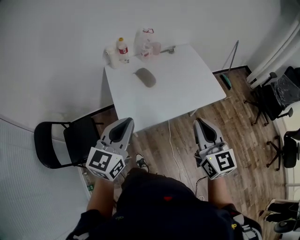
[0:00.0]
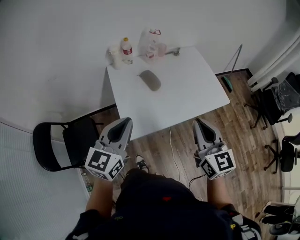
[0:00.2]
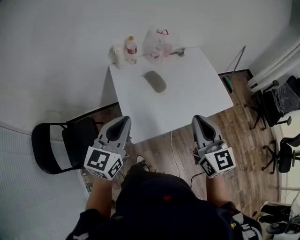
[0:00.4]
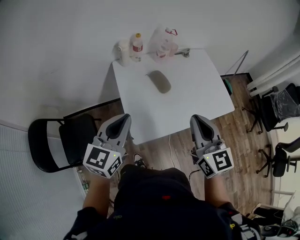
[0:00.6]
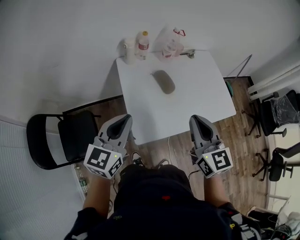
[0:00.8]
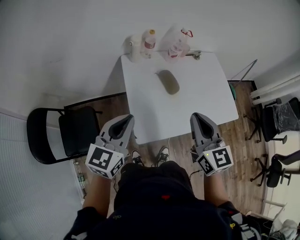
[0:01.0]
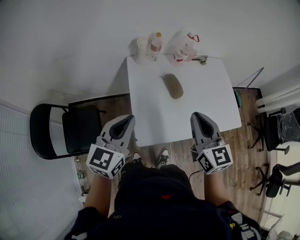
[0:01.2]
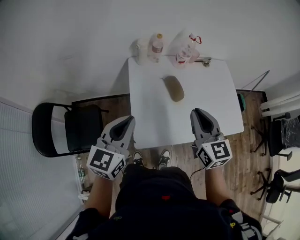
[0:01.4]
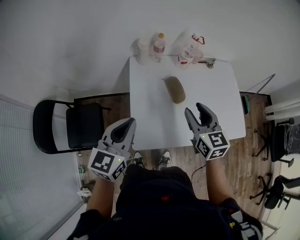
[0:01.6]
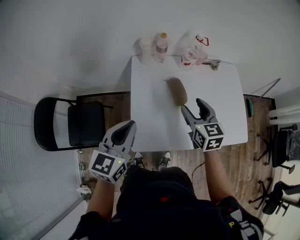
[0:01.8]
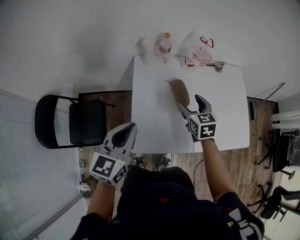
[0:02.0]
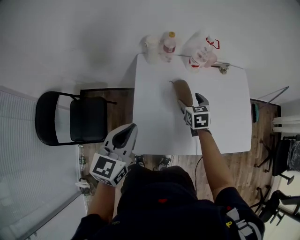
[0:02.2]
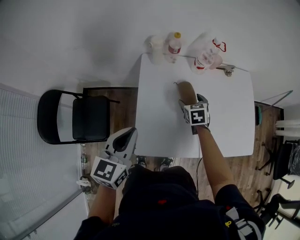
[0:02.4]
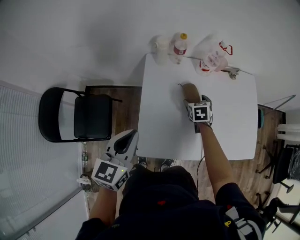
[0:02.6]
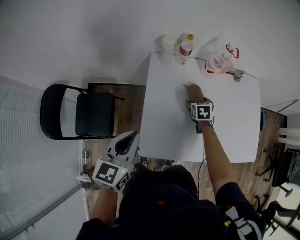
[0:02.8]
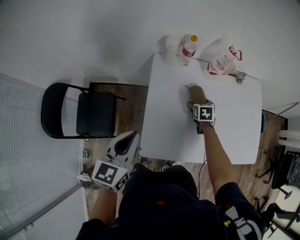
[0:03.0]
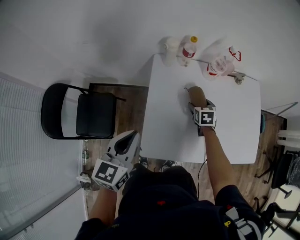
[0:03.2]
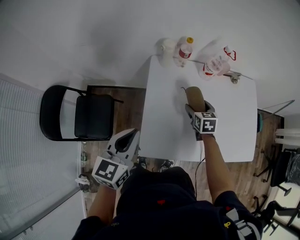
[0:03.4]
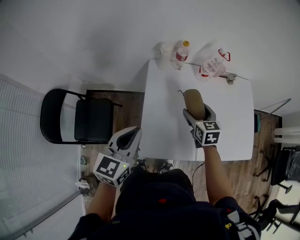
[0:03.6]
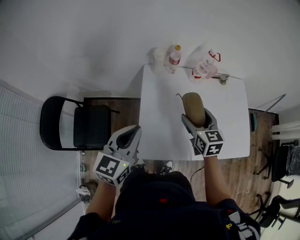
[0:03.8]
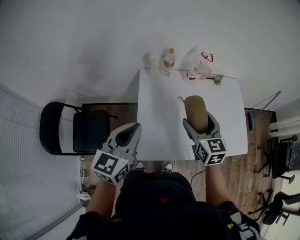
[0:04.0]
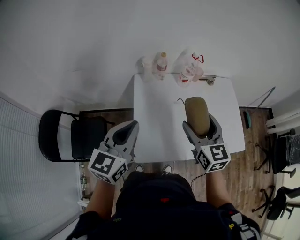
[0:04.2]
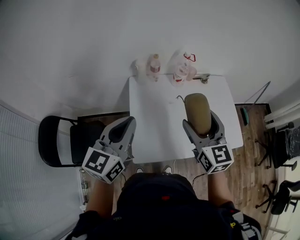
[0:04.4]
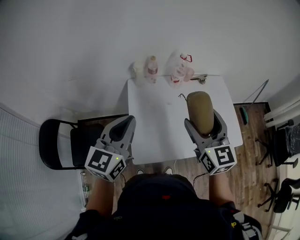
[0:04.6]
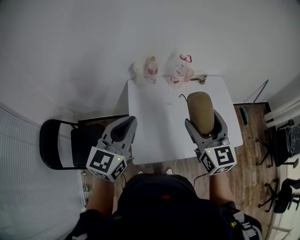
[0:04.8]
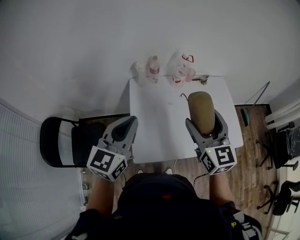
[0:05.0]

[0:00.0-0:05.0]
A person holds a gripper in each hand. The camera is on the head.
0:00.0 to 0:01.6: The right gripper is displaced forward and to the left by roughly 30 cm, rotates roughly 20 degrees, and opens up. Meanwhile the left gripper heads forward and to the left, covering roughly 20 cm.
0:01.6 to 0:03.4: The left gripper shifts by roughly 5 cm; the right gripper moves downward and forward, some 25 cm, swivels roughly 20 degrees, and opens.
0:03.4 to 0:05.0: The right gripper shifts some 35 cm upward and backward, and angles its fingers upward, by roughly 40 degrees, while the left gripper travels upward and to the right by about 15 cm, and changes its angle by roughly 20 degrees.

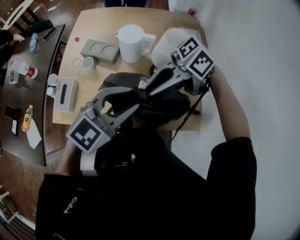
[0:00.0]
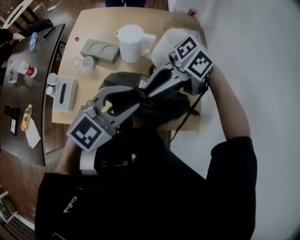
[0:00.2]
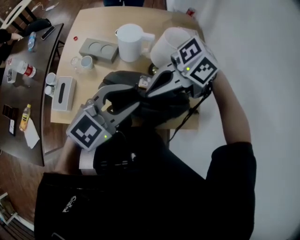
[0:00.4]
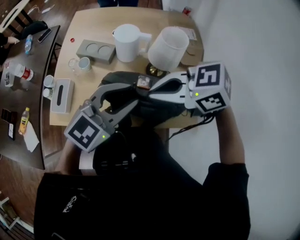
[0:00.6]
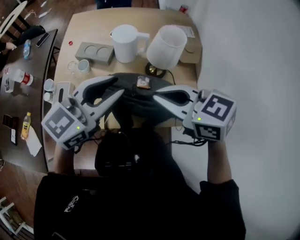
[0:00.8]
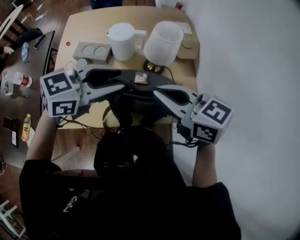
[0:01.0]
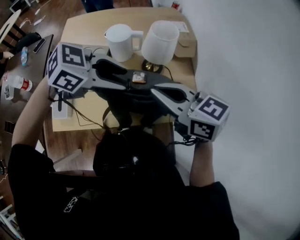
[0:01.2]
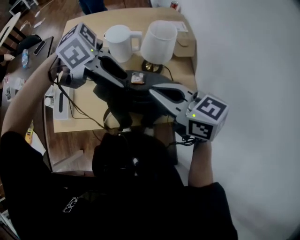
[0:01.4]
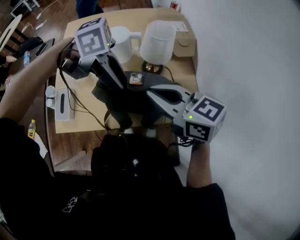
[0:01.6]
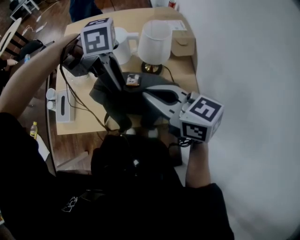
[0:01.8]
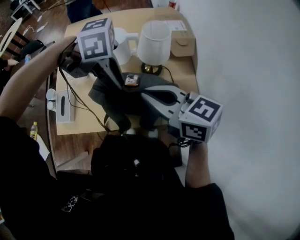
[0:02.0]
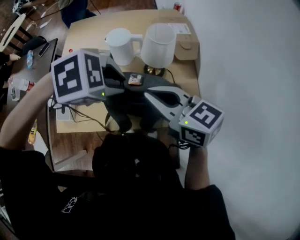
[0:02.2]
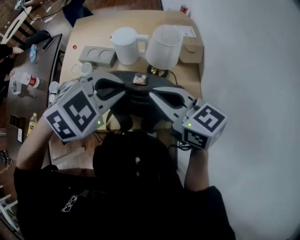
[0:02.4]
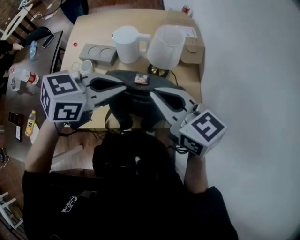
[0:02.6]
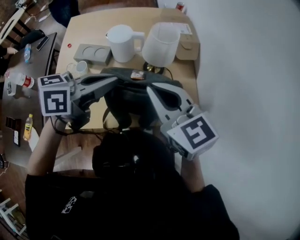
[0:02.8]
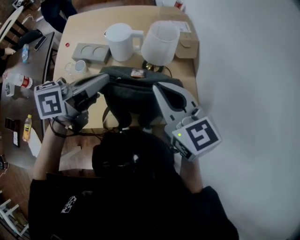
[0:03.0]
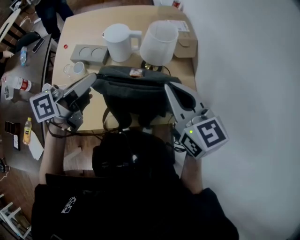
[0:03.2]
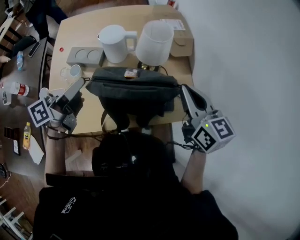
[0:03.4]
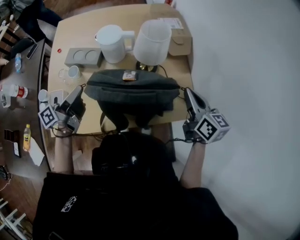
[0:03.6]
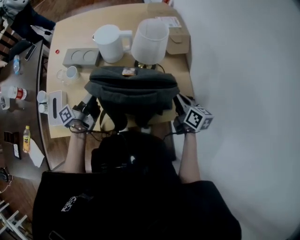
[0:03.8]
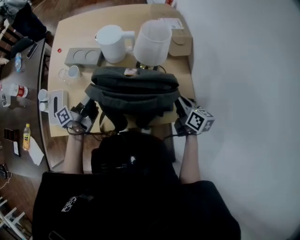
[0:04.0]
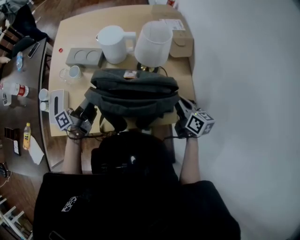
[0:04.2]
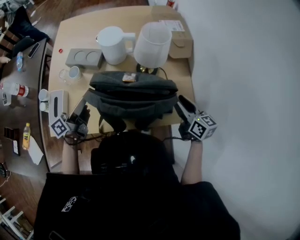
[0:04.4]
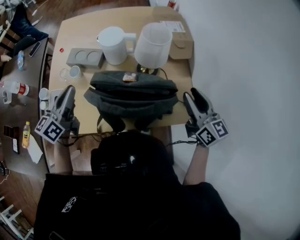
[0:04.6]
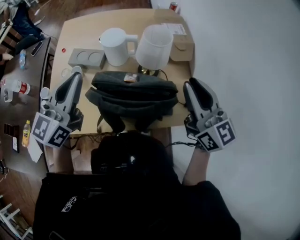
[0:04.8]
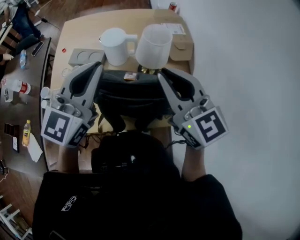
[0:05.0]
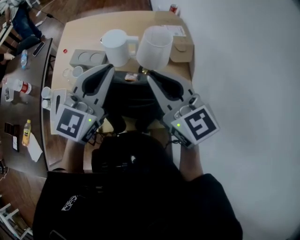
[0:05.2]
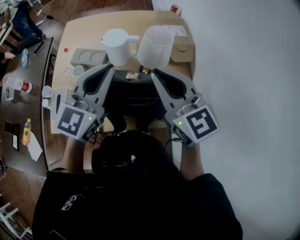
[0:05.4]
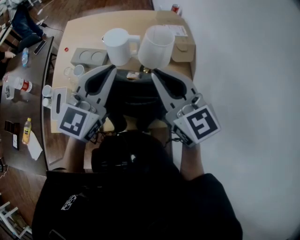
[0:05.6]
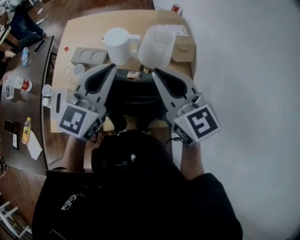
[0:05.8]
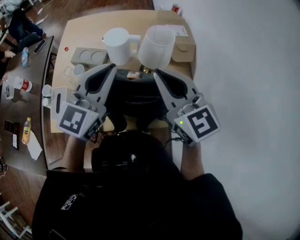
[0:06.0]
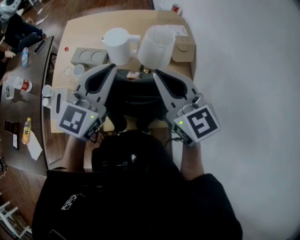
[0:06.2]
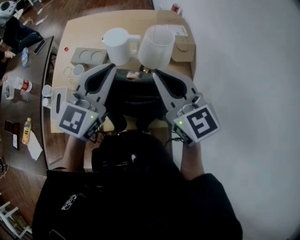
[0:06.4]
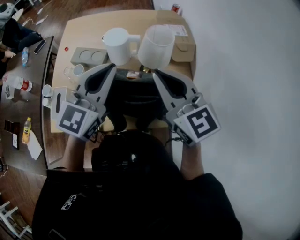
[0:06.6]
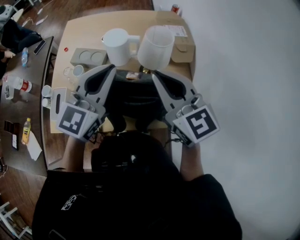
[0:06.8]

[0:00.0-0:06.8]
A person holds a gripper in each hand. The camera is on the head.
0:00.0 to 0:01.4: The right gripper turns by approximately 70 degrees, and closes its fingers, while the left gripper turns by some 70 degrees, and opens up.
0:01.4 to 0:02.8: The left gripper swivels about 50 degrees, and closes up. The right gripper changes its angle by roughly 20 degrees.
0:02.8 to 0:04.0: The right gripper heads downward and to the right, covering roughly 30 cm, and twists approximately 40 degrees clockwise, seen from behind. The left gripper travels downward and to the left by some 25 cm, and rotates approximately 60 degrees.
0:04.0 to 0:05.4: The left gripper travels upward and to the right by approximately 30 cm, rolls clockwise, seen from behind, by some 90 degrees, and opens and closes again. Meanwhile the right gripper goes roughly 30 cm upward and to the left, rolls counterclockwise, seen from behind, by approximately 50 degrees, and opens and closes again.
0:05.4 to 0:06.8: The two grippers keep their place.

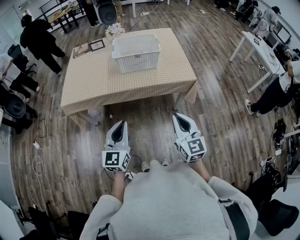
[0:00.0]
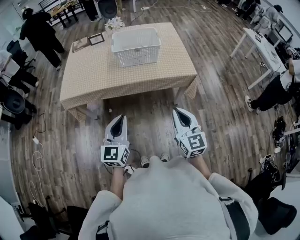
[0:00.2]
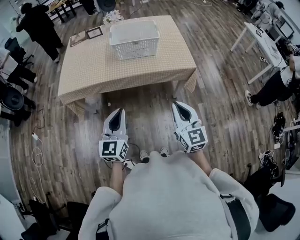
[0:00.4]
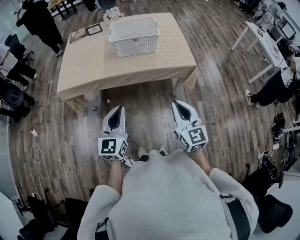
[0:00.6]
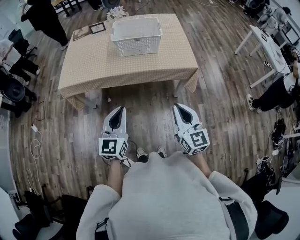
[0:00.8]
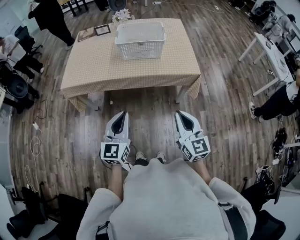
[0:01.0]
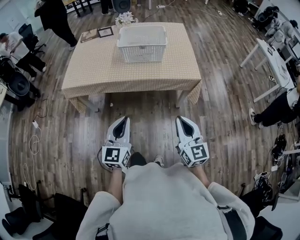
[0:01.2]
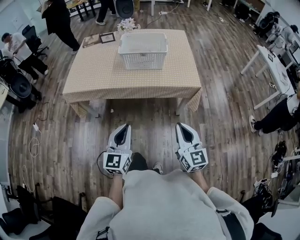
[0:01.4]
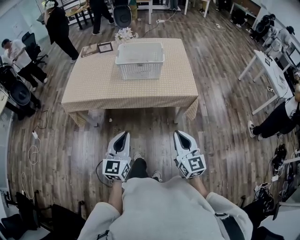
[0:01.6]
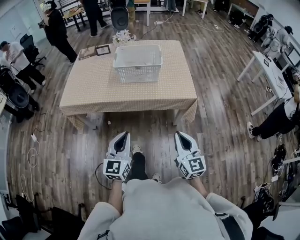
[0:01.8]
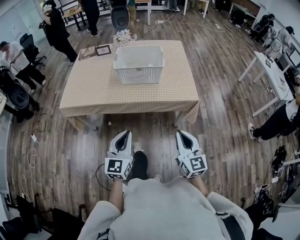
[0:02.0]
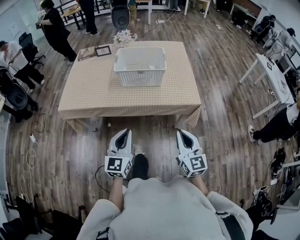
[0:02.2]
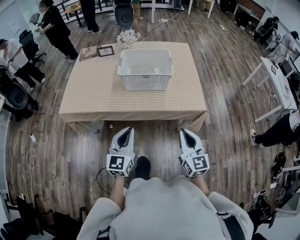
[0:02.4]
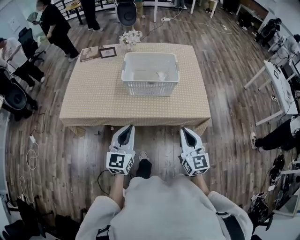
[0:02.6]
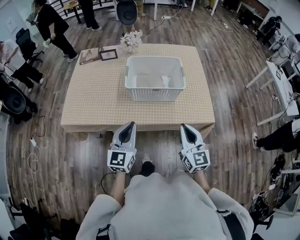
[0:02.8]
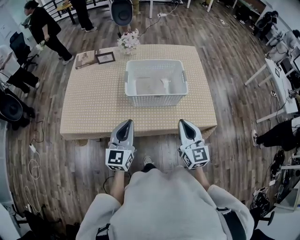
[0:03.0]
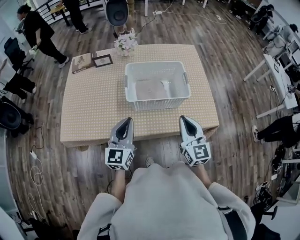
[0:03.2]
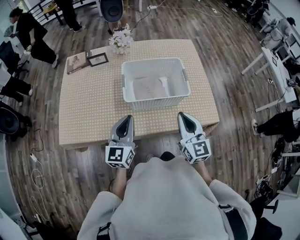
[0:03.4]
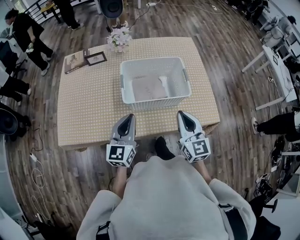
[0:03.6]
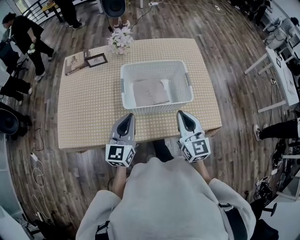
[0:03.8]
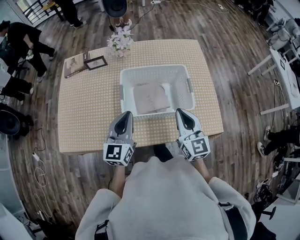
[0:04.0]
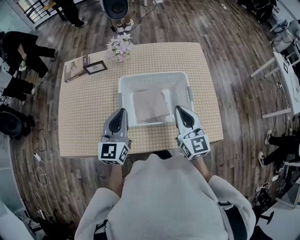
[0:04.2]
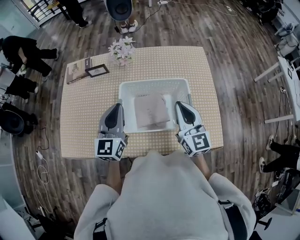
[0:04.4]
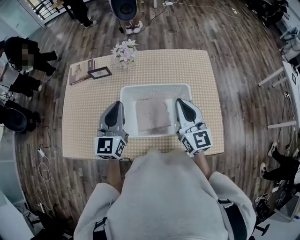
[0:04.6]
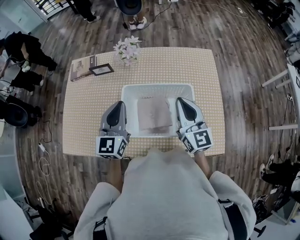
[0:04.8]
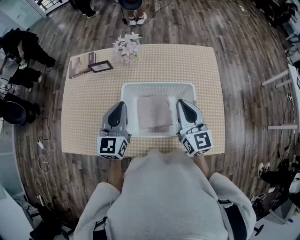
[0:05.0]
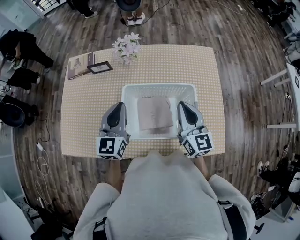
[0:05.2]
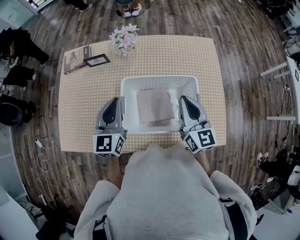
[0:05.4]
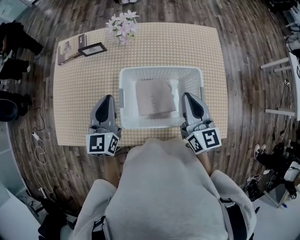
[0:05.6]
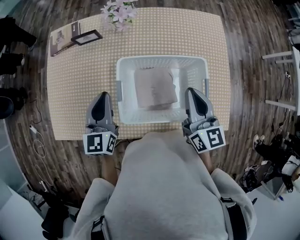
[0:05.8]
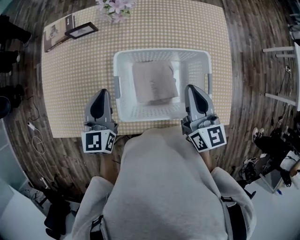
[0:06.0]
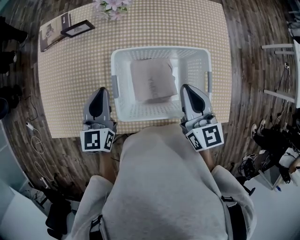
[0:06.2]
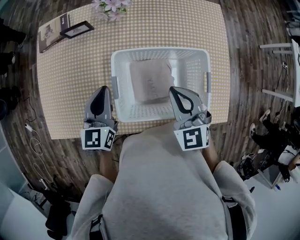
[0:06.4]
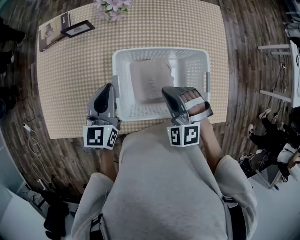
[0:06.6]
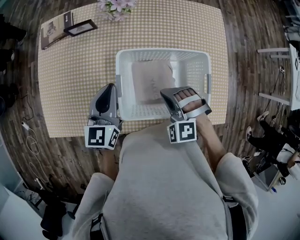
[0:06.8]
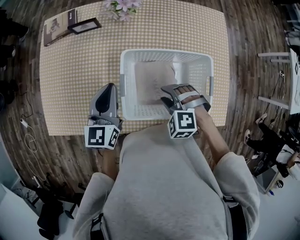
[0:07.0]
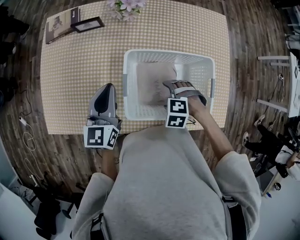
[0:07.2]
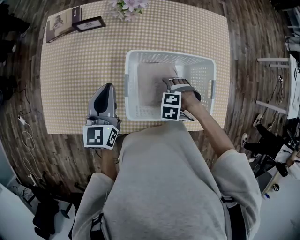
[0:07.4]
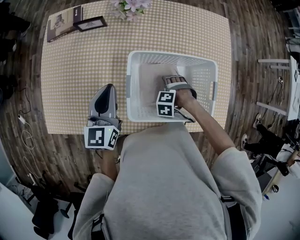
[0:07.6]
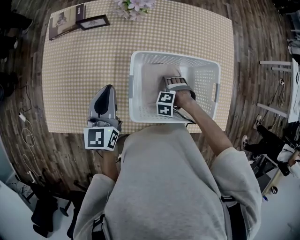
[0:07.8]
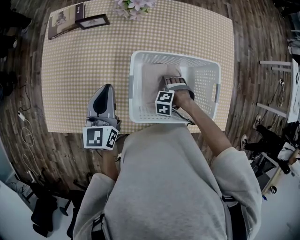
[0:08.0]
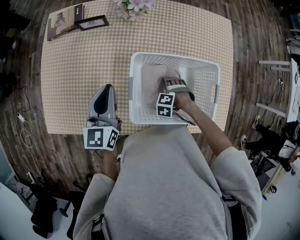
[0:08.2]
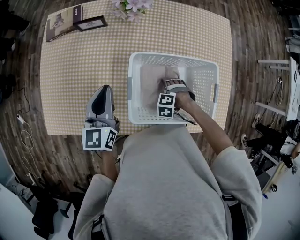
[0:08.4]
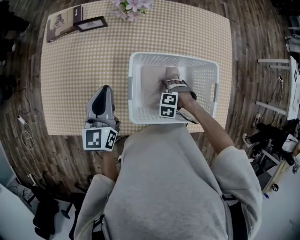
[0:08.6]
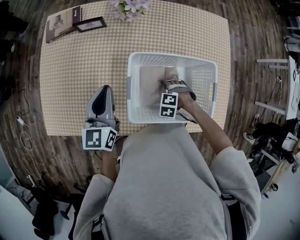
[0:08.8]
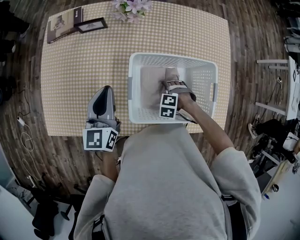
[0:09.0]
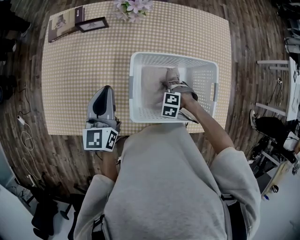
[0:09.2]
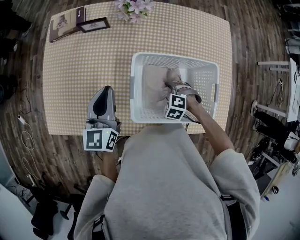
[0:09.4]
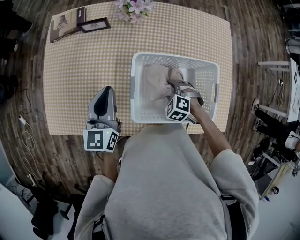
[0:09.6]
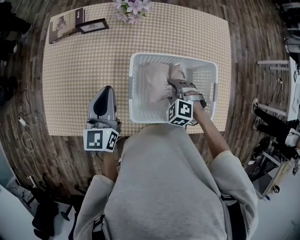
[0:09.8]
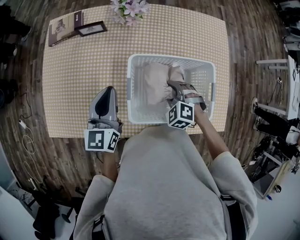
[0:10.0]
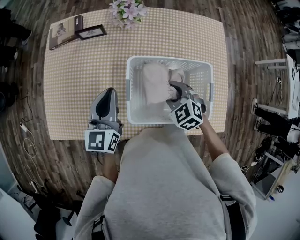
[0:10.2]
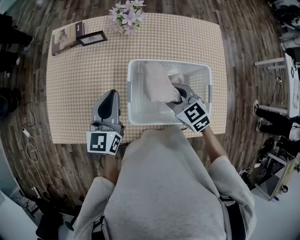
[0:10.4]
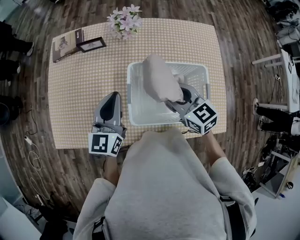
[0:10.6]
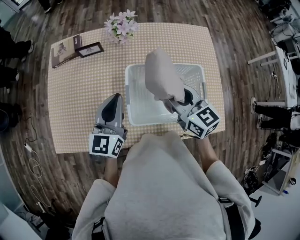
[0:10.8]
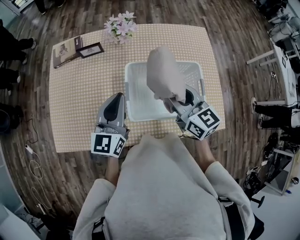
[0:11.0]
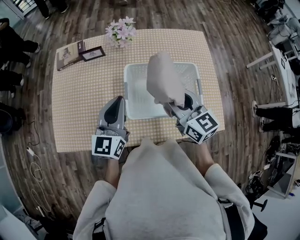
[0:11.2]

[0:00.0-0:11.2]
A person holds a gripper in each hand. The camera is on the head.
0:00.0 to 0:01.6: The grippers both shift to the right by about 5 cm.
0:01.6 to 0:03.2: Both grippers move forward, approximately 40 cm.
0:03.2 to 0:04.8: The grippers both shift forward by some 25 cm.
0:04.8 to 0:06.4: Both grippers move downward and to the left, some 15 cm. The right gripper swivels approximately 40 degrees.
0:06.4 to 0:08.0: The right gripper moves downward, roughly 25 cm, tilts its fingers roughly 60 degrees downward, and opens up.
0:08.0 to 0:09.6: The right gripper is displaced upward by some 10 cm, changes its angle by about 30 degrees, and closes up.
0:09.6 to 0:11.2: The right gripper shifts some 30 cm upward, and angles its fingers upward, by some 50 degrees; the left gripper heads upward, backward and to the right, covering some 10 cm.
